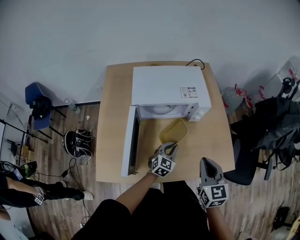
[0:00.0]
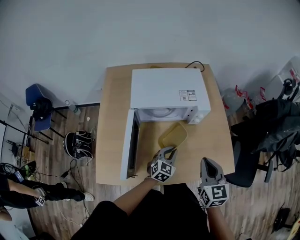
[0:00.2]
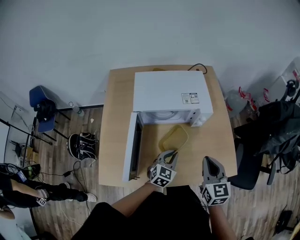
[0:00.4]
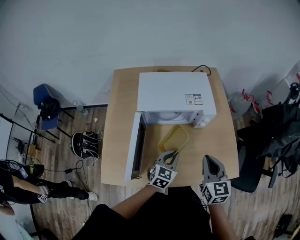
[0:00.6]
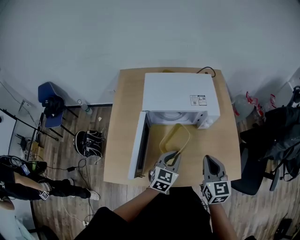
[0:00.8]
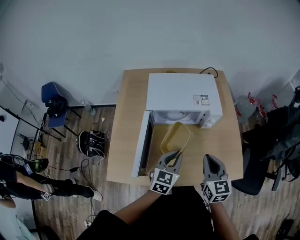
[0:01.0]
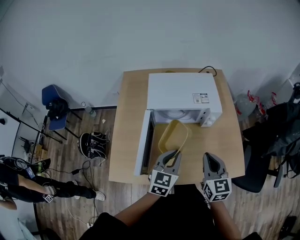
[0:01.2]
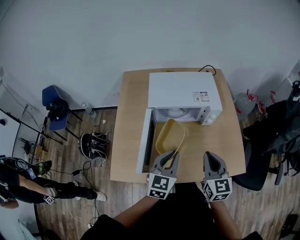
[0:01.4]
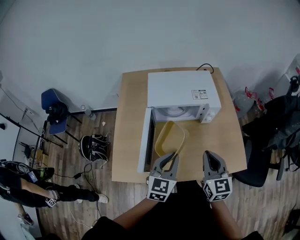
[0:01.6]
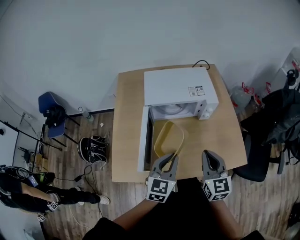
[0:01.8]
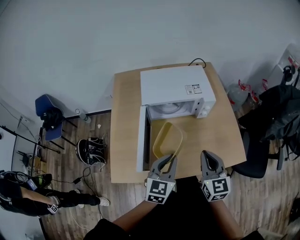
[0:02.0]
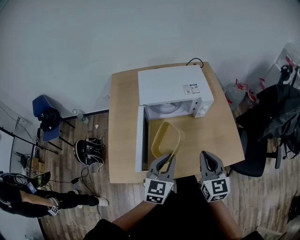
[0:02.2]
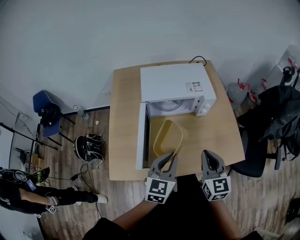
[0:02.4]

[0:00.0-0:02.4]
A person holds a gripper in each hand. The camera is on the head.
0:00.0 to 0:01.2: The left gripper travels upward by some 15 cm.
0:01.2 to 0:02.4: The two grippers go roughly 5 cm backward.

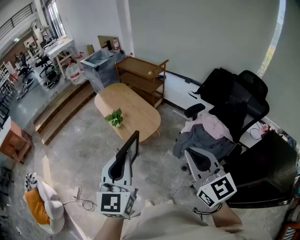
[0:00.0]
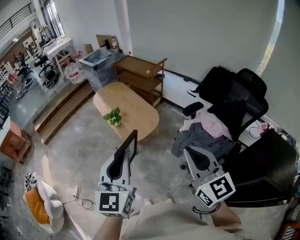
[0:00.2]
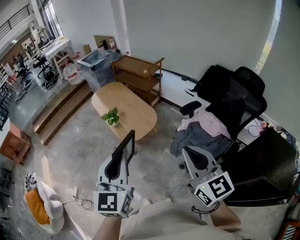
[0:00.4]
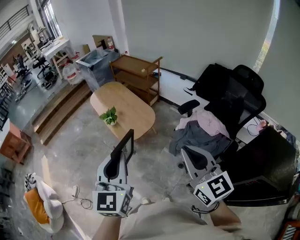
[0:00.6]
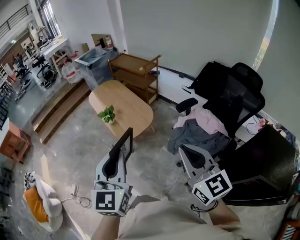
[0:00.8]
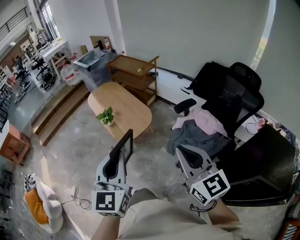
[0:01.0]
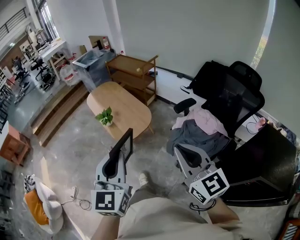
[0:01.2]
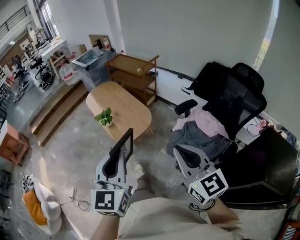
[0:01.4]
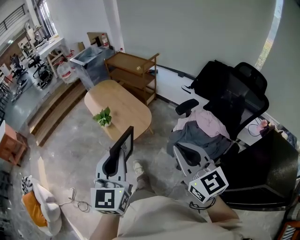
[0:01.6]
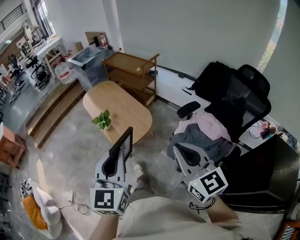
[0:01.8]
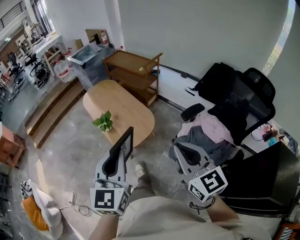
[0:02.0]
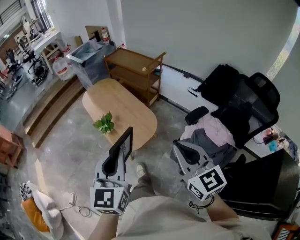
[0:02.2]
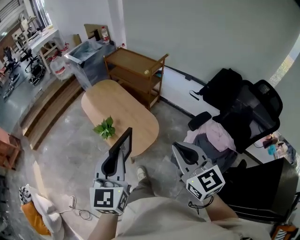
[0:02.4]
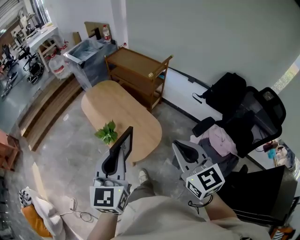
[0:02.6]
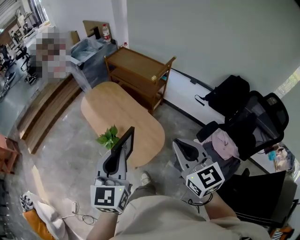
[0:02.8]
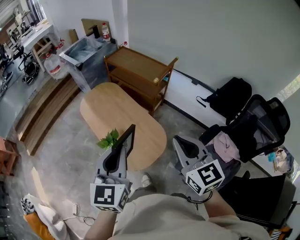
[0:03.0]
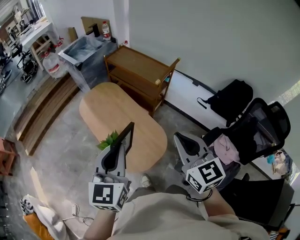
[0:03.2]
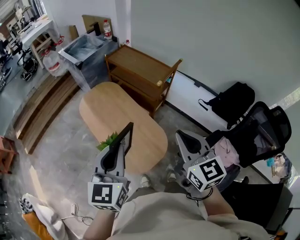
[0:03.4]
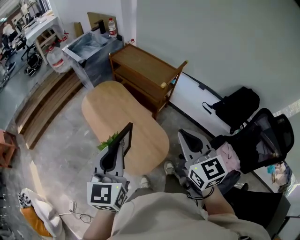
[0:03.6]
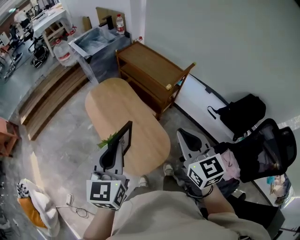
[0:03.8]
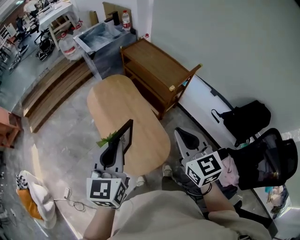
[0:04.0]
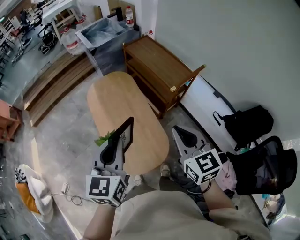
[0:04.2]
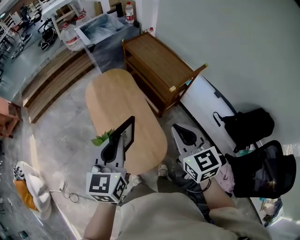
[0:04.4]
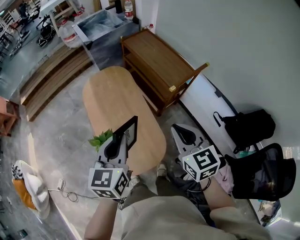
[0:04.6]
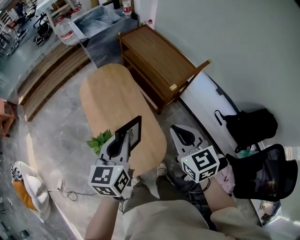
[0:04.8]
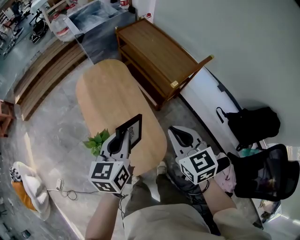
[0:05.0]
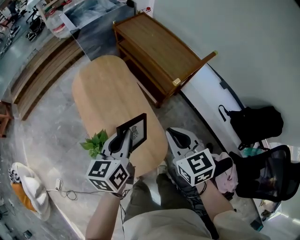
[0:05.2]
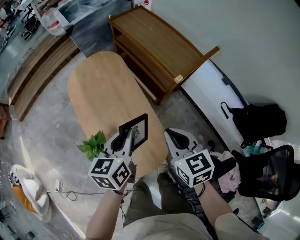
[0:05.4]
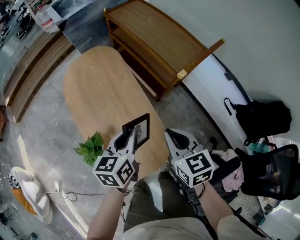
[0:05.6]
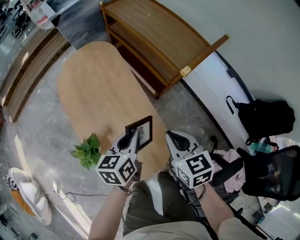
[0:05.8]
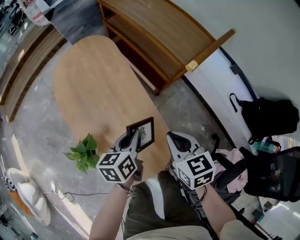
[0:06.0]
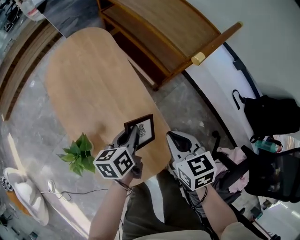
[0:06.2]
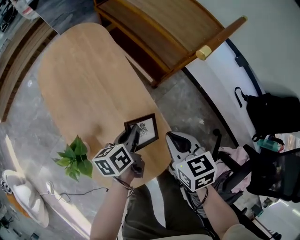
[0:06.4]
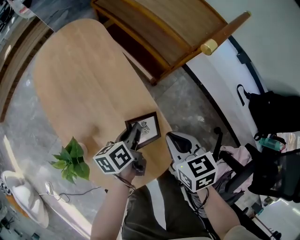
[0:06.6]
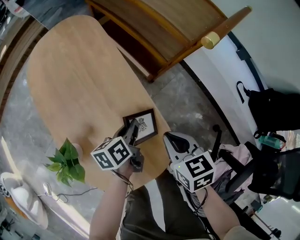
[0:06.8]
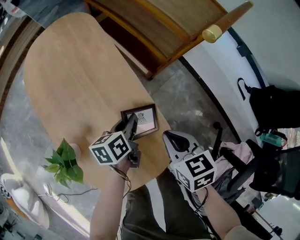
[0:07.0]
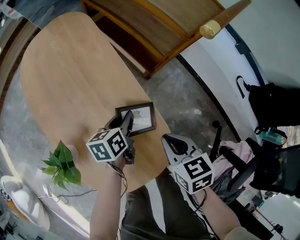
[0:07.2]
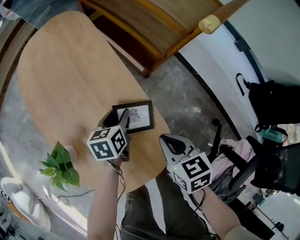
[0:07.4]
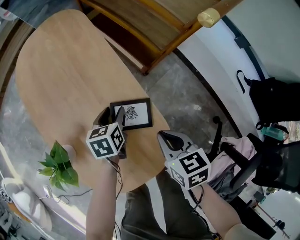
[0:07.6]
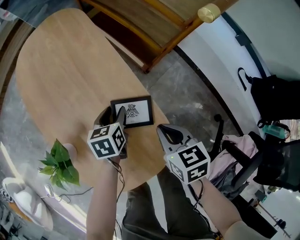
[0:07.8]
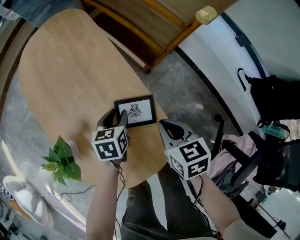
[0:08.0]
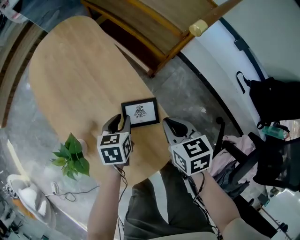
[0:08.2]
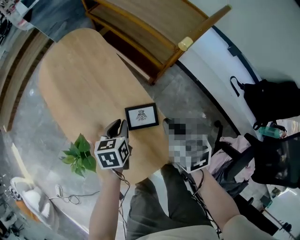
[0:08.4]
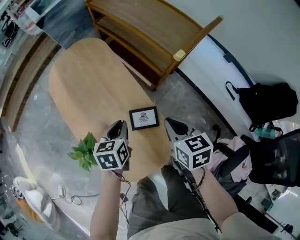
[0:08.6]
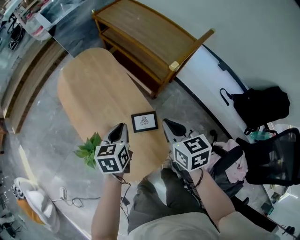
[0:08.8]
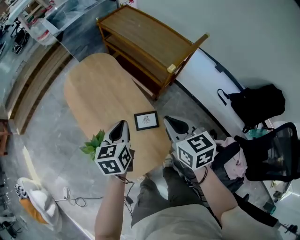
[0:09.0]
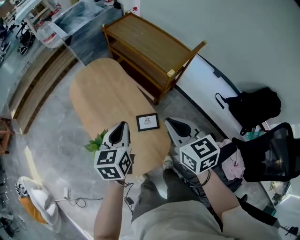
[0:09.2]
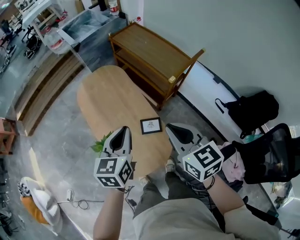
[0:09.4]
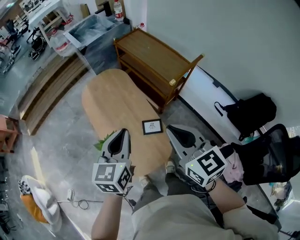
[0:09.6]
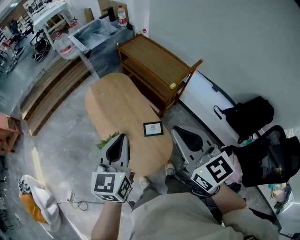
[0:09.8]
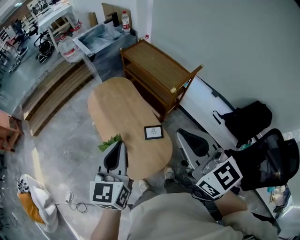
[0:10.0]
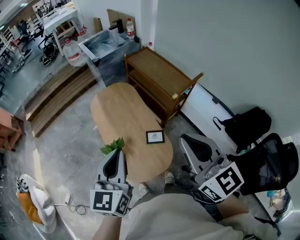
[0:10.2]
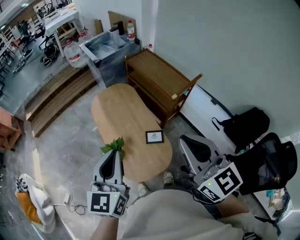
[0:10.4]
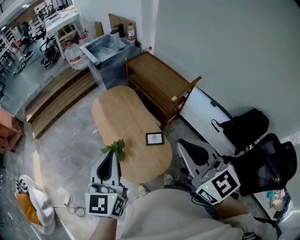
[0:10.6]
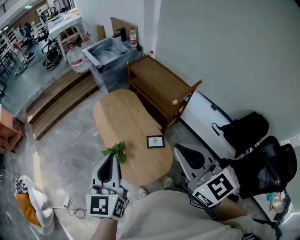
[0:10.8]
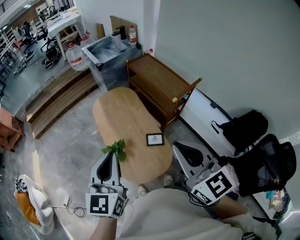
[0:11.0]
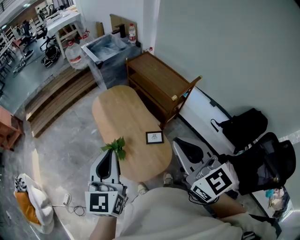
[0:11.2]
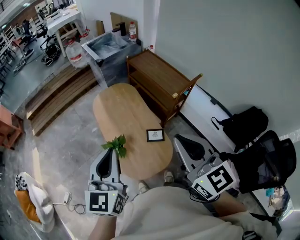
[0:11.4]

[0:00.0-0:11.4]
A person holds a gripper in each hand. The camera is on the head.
0:00.0 to 0:01.4: Both grippers move to the right, some 5 cm.
0:01.4 to 0:02.8: Both grippers are carried forward, approximately 40 cm.
0:02.8 to 0:04.2: The two grippers go some 25 cm forward.
0:04.2 to 0:05.6: The left gripper goes roughly 35 cm downward and forward, and swivels roughly 30 degrees. Meanwhile the right gripper is displaced downward by some 30 cm, and swivels about 20 degrees.
0:05.6 to 0:07.2: Both grippers move downward, some 30 cm.
0:07.2 to 0:08.6: The grippers both shift upward by roughly 15 cm. The left gripper turns by roughly 20 degrees, and opens, then closes again.
0:08.6 to 0:10.0: Both grippers move upward, roughly 50 cm. The right gripper points its fingers some 40 degrees further upward, while the left gripper tips its fingers upward by roughly 30 degrees.
0:10.0 to 0:11.4: The right gripper goes about 5 cm backward. Meanwhile the left gripper is displaced backward, to the left and upward by about 10 cm.

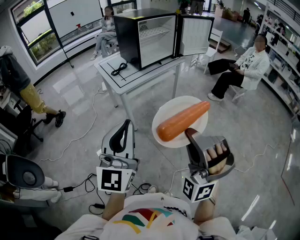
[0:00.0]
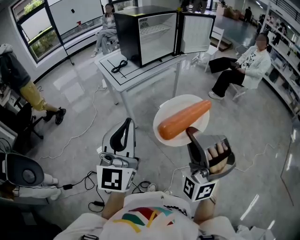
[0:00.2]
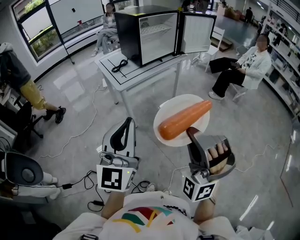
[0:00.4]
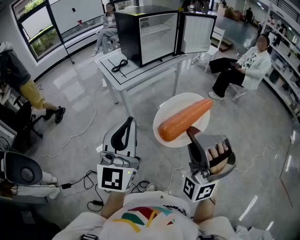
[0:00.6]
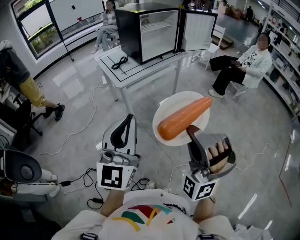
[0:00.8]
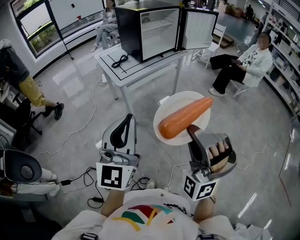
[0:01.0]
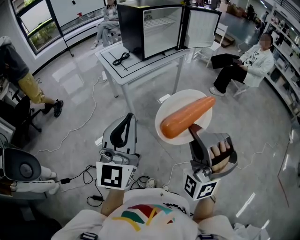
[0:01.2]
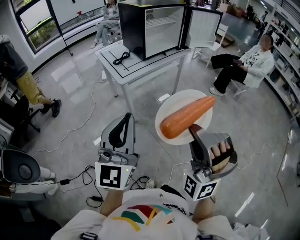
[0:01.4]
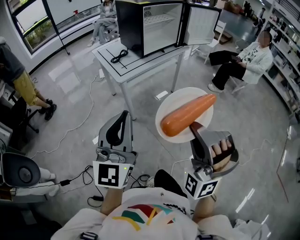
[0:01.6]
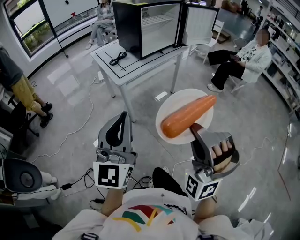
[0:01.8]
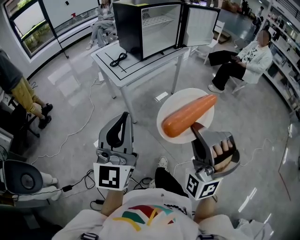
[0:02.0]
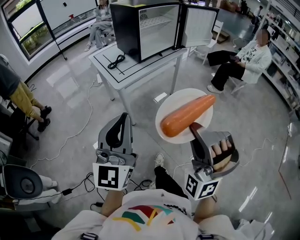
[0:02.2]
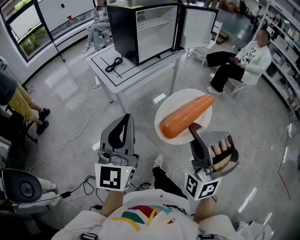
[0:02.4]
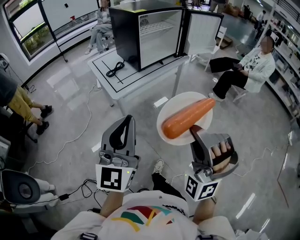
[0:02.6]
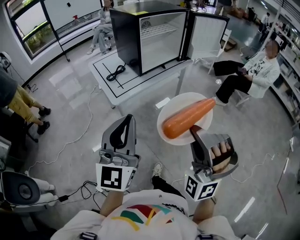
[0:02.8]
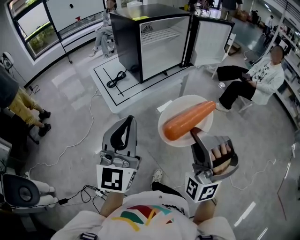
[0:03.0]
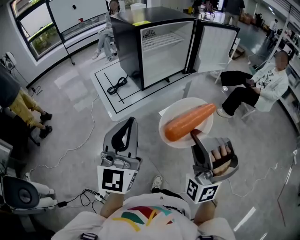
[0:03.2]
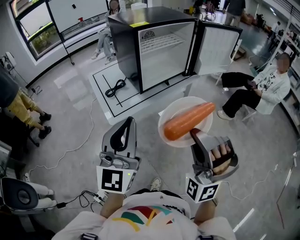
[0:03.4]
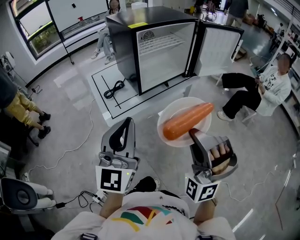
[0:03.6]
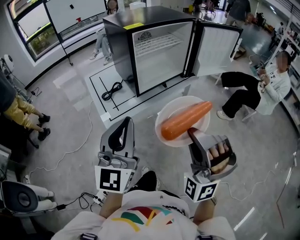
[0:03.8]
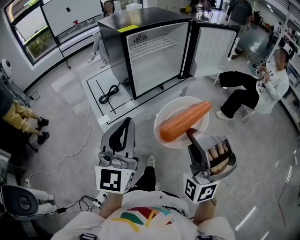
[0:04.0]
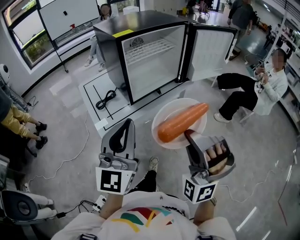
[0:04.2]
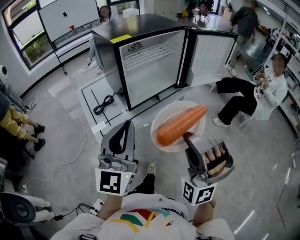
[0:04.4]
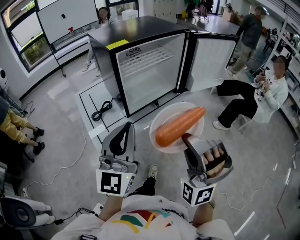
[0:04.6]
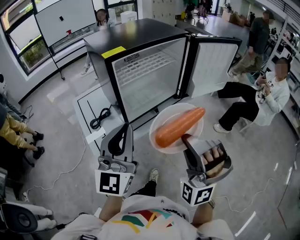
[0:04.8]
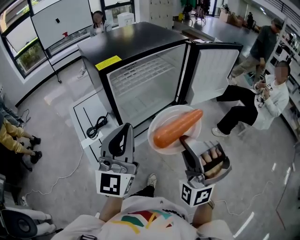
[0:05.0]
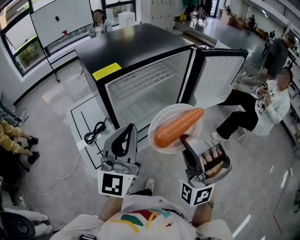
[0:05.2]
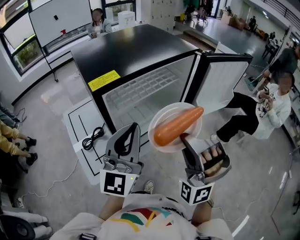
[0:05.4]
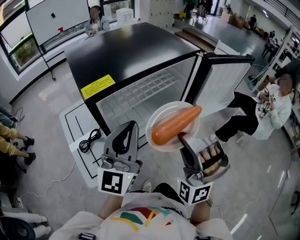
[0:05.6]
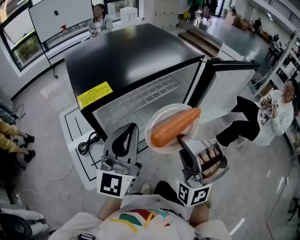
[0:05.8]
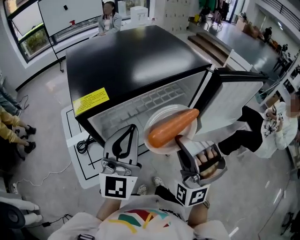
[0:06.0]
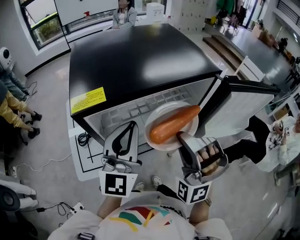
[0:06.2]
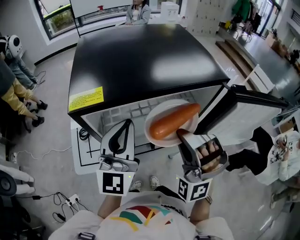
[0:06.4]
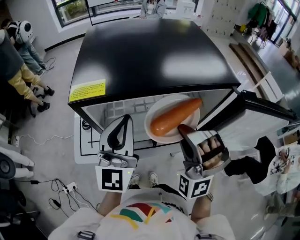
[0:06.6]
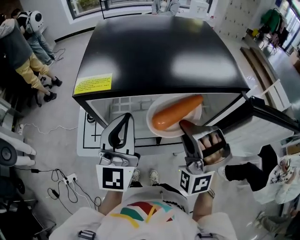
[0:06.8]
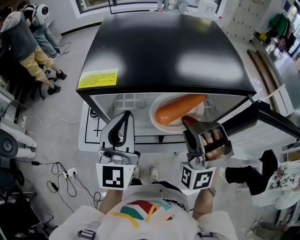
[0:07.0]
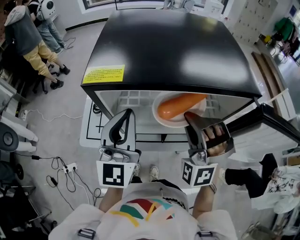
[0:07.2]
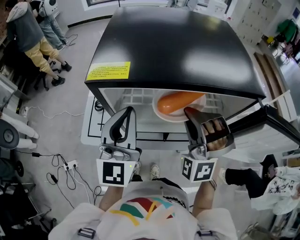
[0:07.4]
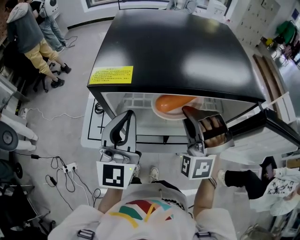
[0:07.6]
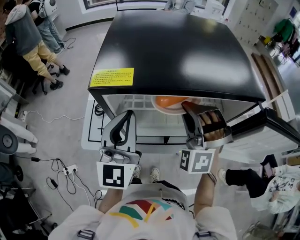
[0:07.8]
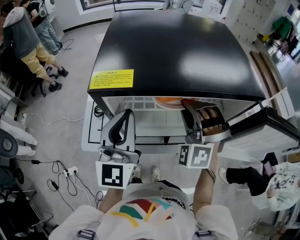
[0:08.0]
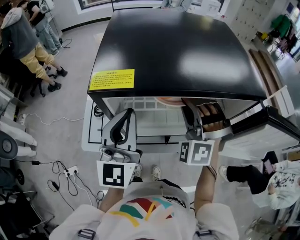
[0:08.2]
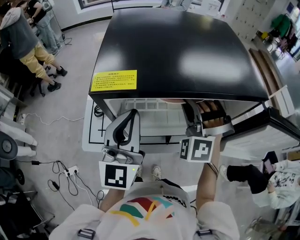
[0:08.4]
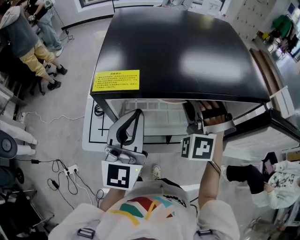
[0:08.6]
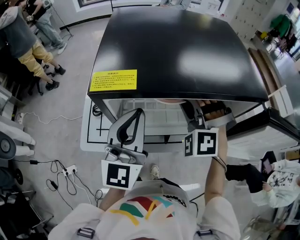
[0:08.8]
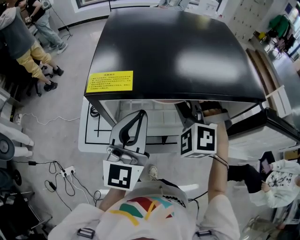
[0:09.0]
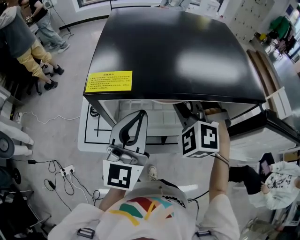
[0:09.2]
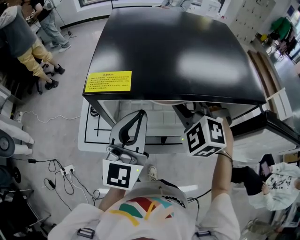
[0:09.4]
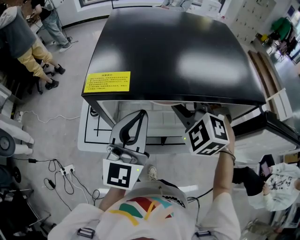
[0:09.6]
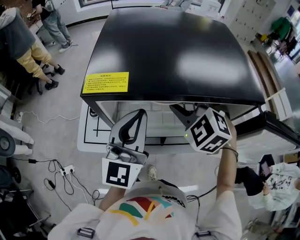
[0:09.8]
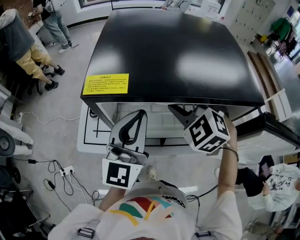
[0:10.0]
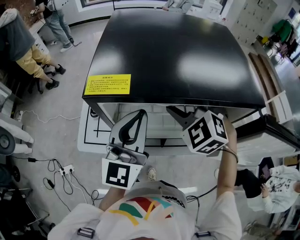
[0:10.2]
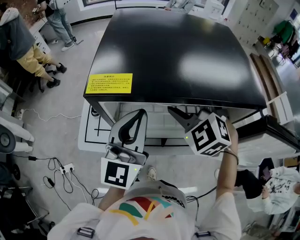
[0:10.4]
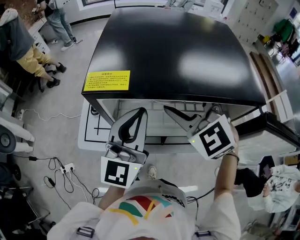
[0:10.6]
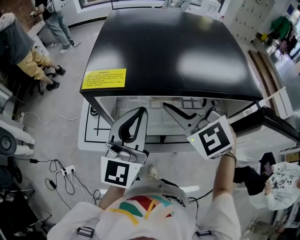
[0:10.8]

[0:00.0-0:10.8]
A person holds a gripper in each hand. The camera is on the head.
0:00.0 to 0:01.6: The left gripper changes place by roughly 5 cm.
0:01.6 to 0:03.0: The left gripper changes place by roughly 20 cm.
0:03.0 to 0:04.6: The left gripper moves about 25 cm.
0:04.6 to 0:06.2: The left gripper changes place by some 30 cm.
0:06.2 to 0:07.8: The left gripper ends up some 5 cm from where it was, and changes its angle by some 30 degrees.
